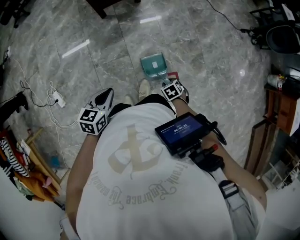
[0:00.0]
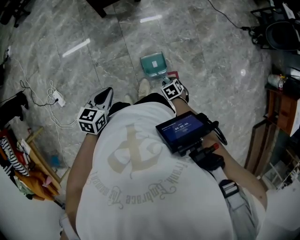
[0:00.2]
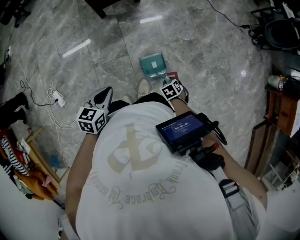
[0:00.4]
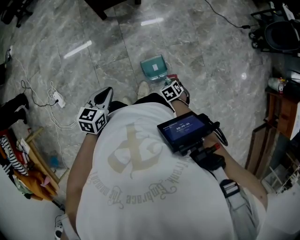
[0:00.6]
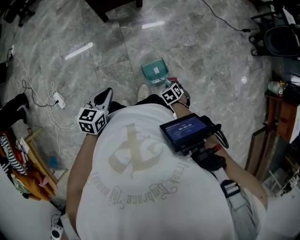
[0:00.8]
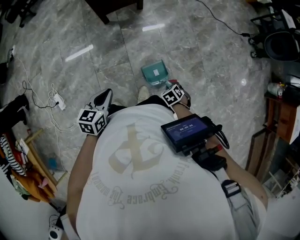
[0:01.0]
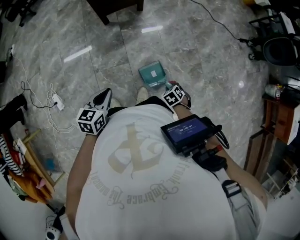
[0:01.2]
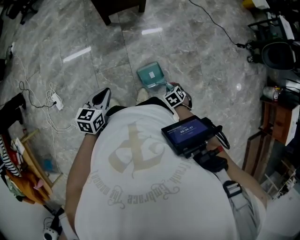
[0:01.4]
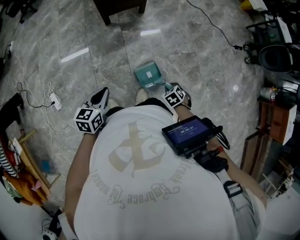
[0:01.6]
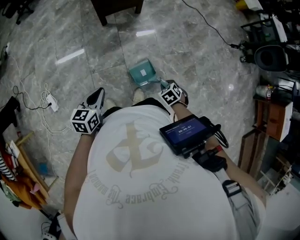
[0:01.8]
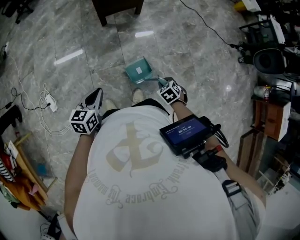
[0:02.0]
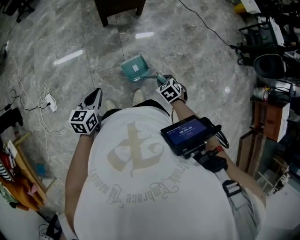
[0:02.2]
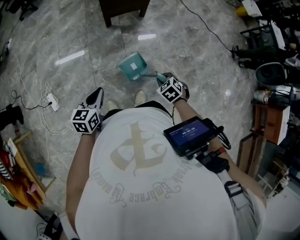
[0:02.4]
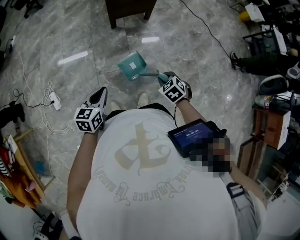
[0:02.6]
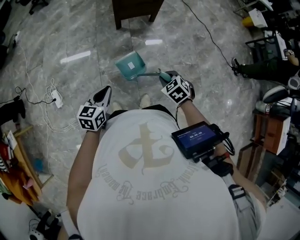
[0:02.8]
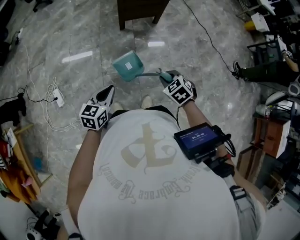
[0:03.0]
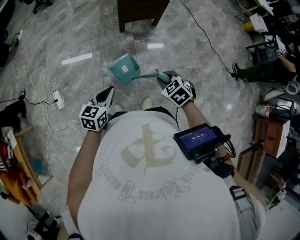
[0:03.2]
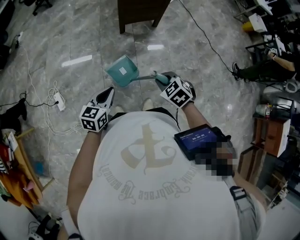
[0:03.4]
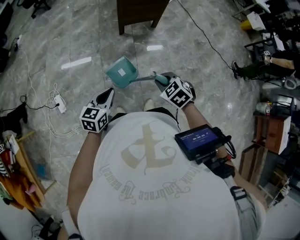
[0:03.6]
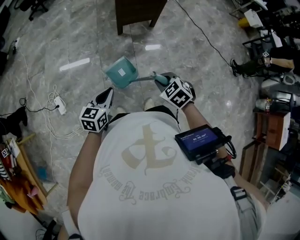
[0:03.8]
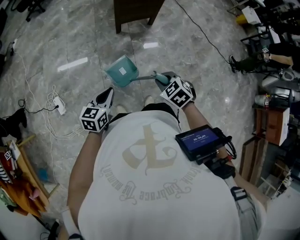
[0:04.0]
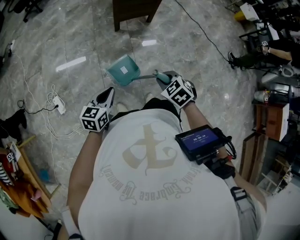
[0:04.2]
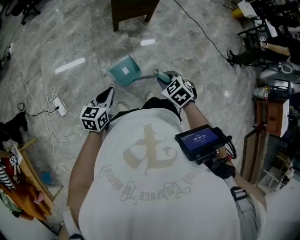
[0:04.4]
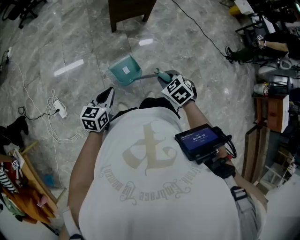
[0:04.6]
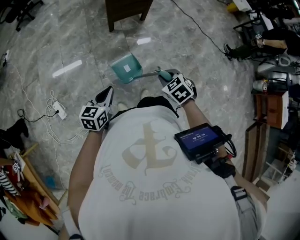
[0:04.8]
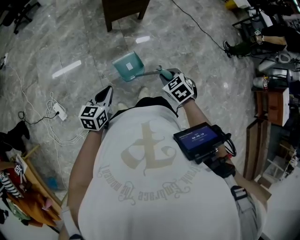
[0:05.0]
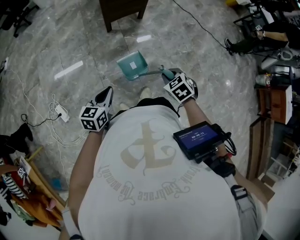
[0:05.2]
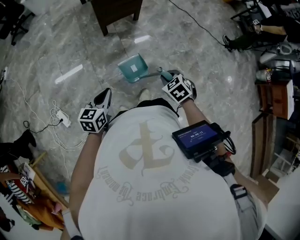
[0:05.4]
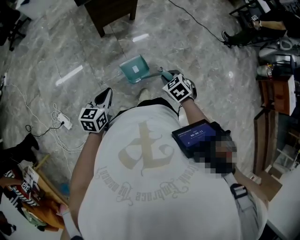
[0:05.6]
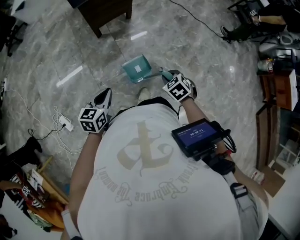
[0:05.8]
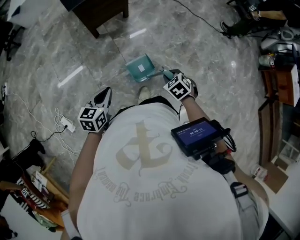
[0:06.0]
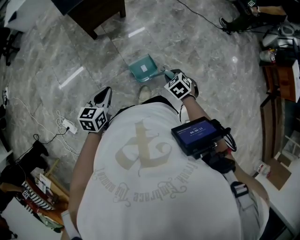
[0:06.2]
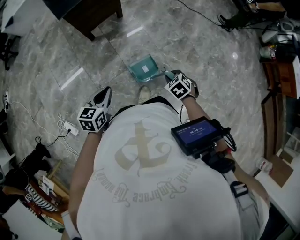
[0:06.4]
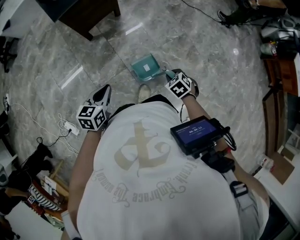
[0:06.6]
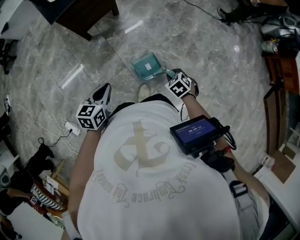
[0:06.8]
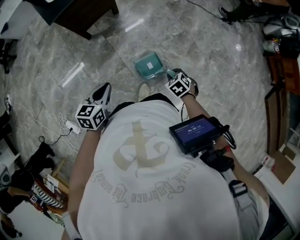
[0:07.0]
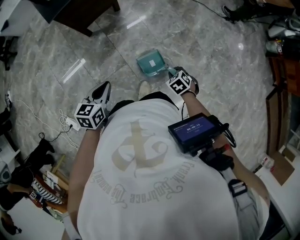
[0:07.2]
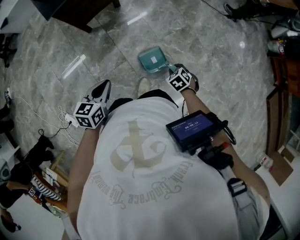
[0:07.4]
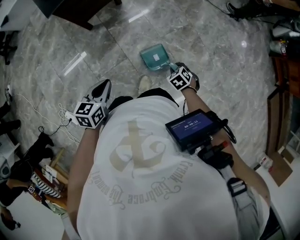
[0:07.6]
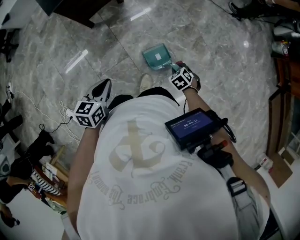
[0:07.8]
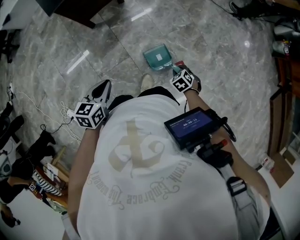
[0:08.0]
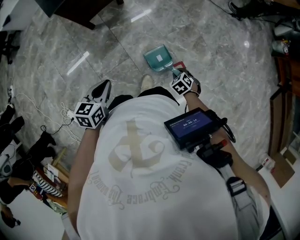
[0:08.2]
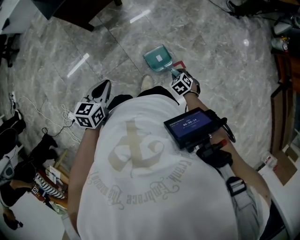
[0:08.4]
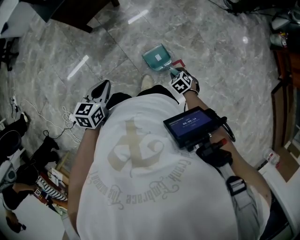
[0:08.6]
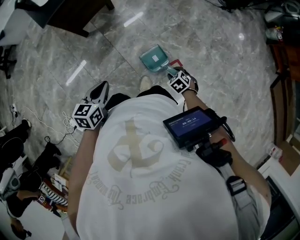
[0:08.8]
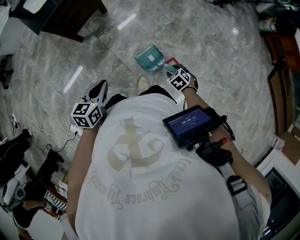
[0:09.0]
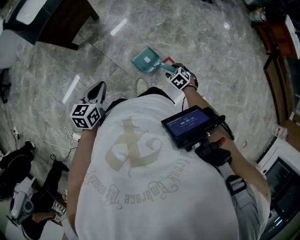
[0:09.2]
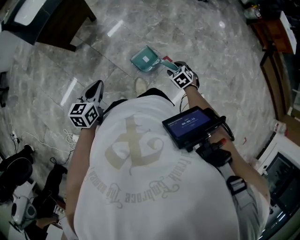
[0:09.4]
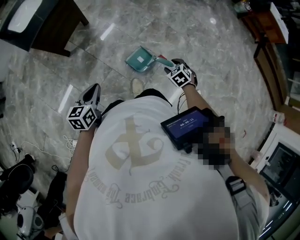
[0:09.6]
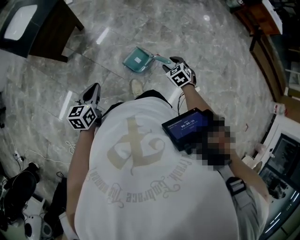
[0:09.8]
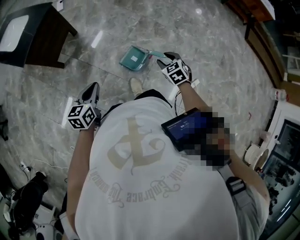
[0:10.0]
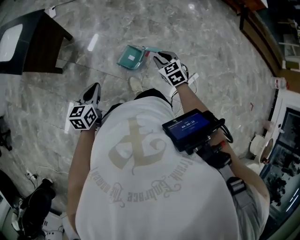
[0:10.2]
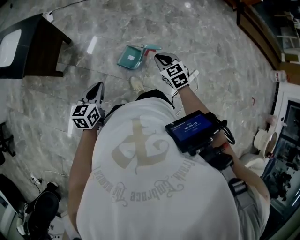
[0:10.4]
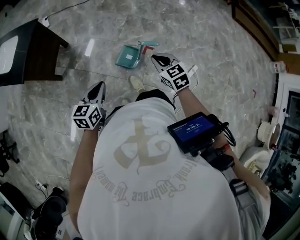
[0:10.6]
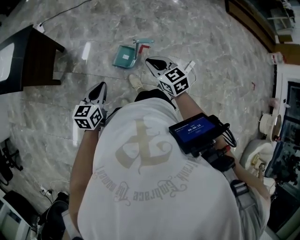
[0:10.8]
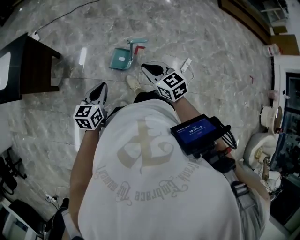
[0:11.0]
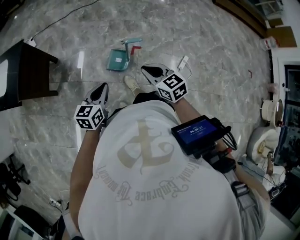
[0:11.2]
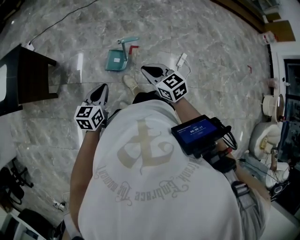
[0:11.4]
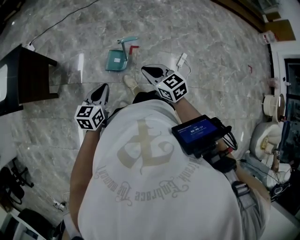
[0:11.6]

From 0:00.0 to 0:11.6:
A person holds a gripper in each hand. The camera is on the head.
From 0:00.0 to 0:01.4: The right gripper closes up.
From 0:01.4 to 0:02.8: The right gripper travels upward by about 15 cm, and turns by approximately 20 degrees. Meanwhile the left gripper shifts by some 5 cm.
From 0:02.8 to 0:04.4: The right gripper heads to the left and upward, covering some 10 cm, while the left gripper is displaced to the left by some 5 cm.
From 0:04.4 to 0:05.8: The right gripper moves to the right and downward, about 15 cm. The left gripper moves forward and to the right, roughly 10 cm.
From 0:05.8 to 0:07.2: The right gripper heads downward and to the right, covering approximately 15 cm, while the left gripper is displaced forward and to the right by some 10 cm.
From 0:07.2 to 0:08.8: The right gripper travels downward by about 5 cm, and opens up.
From 0:08.8 to 0:10.2: The left gripper turns by about 20 degrees. The right gripper moves upward, approximately 20 cm, and rotates roughly 40 degrees.
From 0:10.2 to 0:11.6: The left gripper is displaced to the right by roughly 10 cm, and changes its angle by about 20 degrees; the right gripper is displaced backward and upward by about 20 cm, changes its angle by roughly 30 degrees, and closes its fingers.

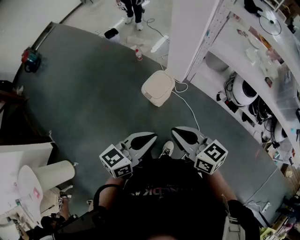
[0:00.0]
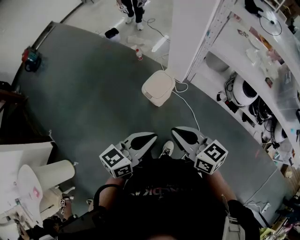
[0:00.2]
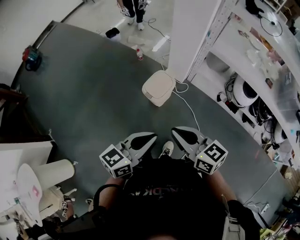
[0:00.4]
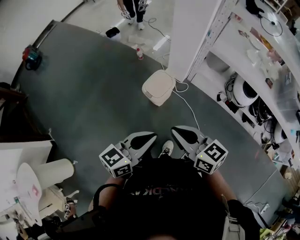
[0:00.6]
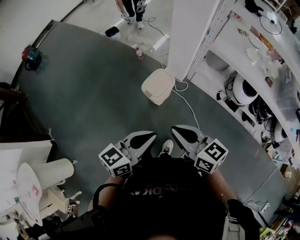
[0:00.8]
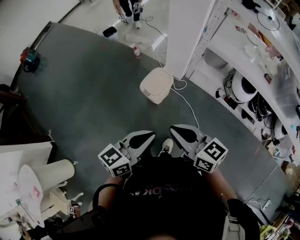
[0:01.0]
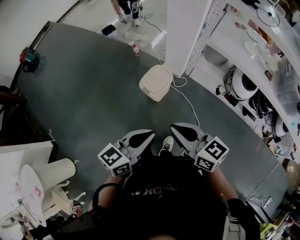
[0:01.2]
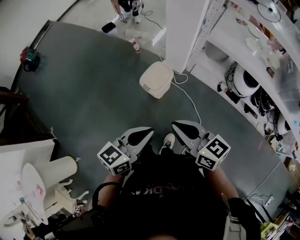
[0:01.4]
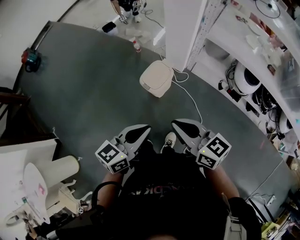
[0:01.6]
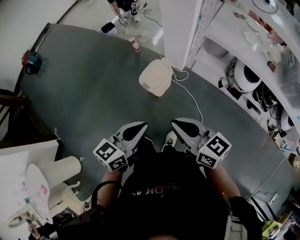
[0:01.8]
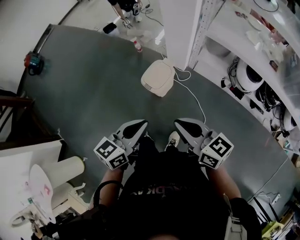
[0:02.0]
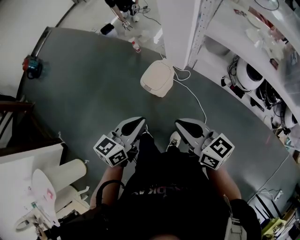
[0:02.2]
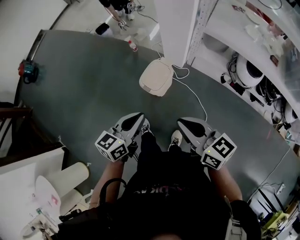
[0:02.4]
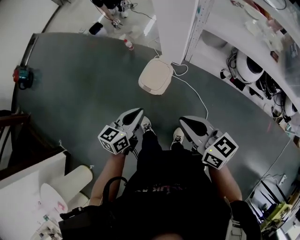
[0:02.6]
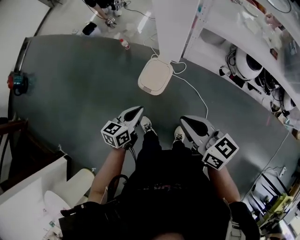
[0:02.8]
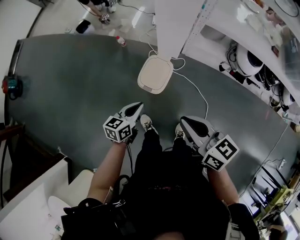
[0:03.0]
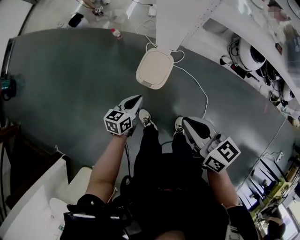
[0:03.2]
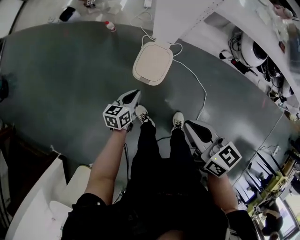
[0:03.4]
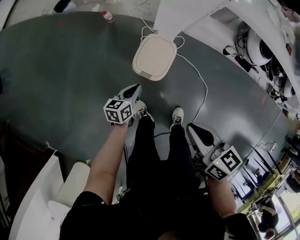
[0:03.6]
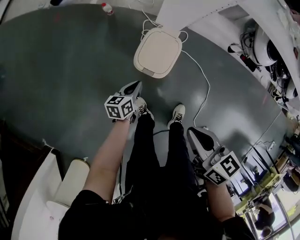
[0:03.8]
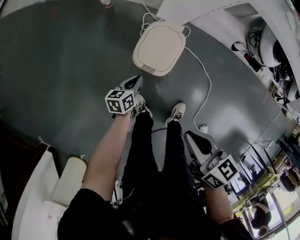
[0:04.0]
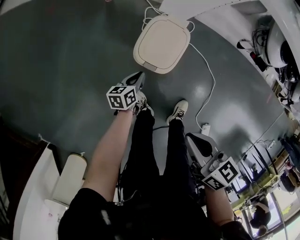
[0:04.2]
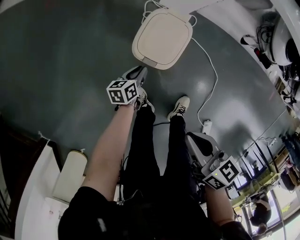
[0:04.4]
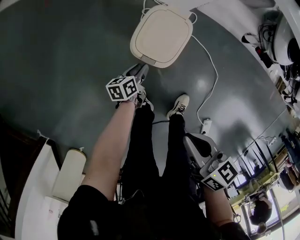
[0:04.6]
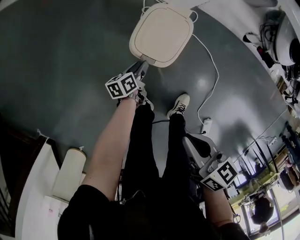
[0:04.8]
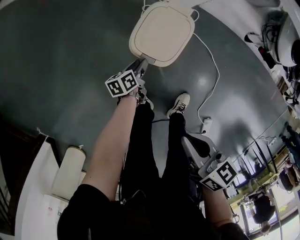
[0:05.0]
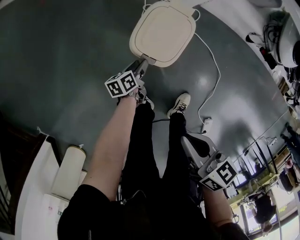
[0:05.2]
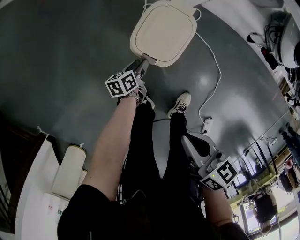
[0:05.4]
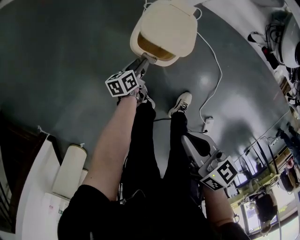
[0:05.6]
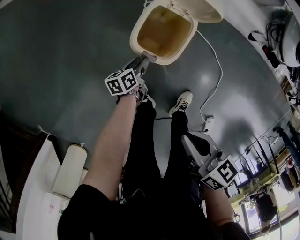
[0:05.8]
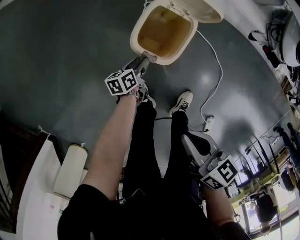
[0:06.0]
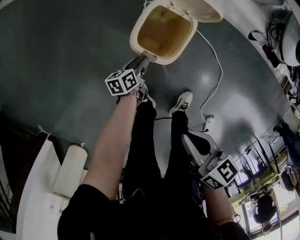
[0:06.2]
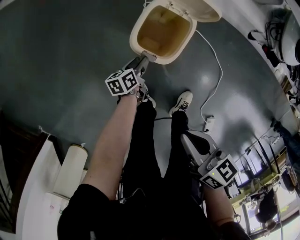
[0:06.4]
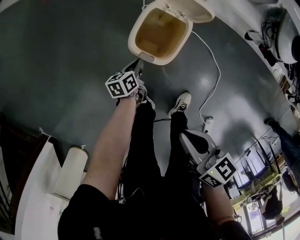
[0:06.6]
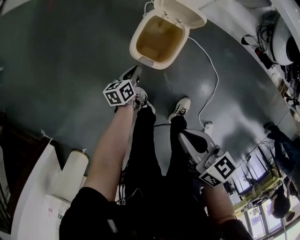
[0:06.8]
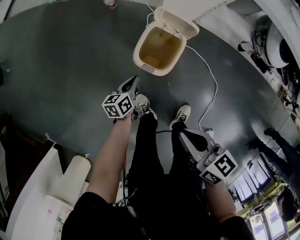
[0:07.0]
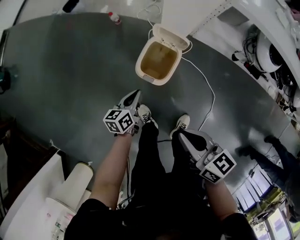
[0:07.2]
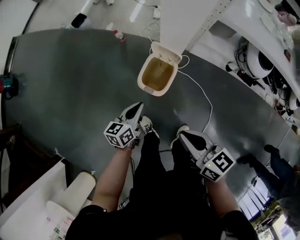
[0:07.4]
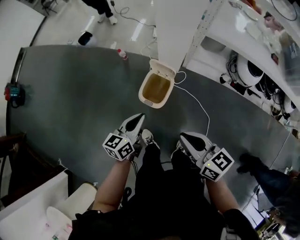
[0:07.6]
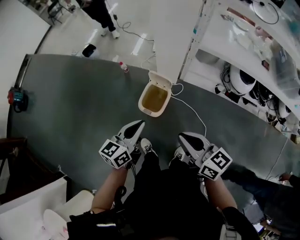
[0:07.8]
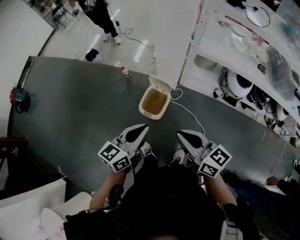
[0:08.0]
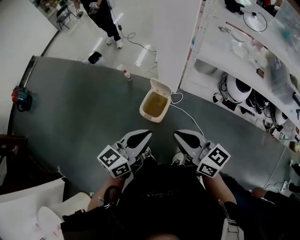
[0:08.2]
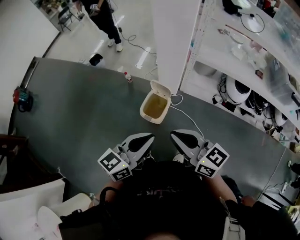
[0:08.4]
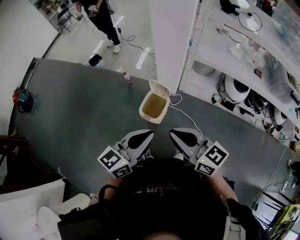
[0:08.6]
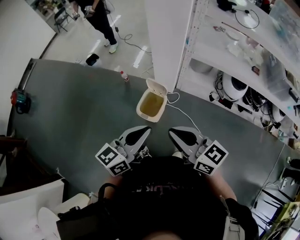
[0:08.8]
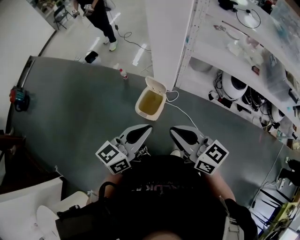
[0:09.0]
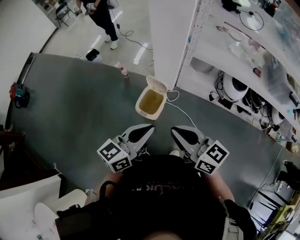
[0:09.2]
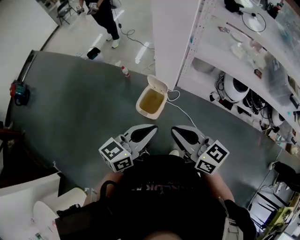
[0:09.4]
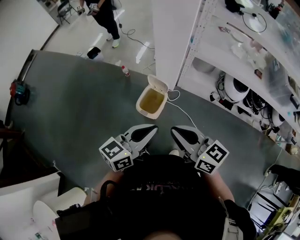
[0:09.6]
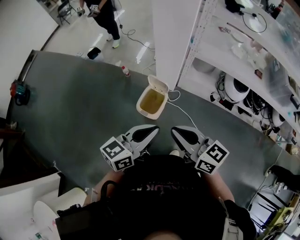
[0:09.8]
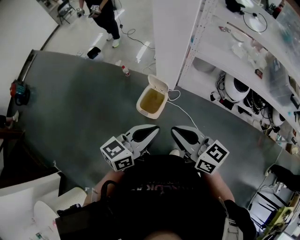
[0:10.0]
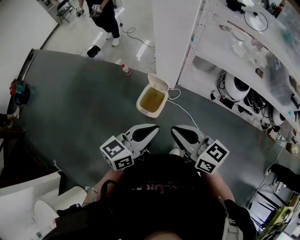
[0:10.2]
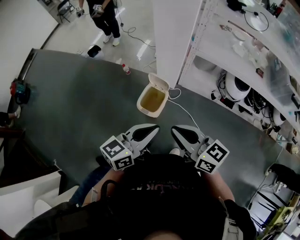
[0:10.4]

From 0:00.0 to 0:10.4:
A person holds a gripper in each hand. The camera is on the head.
From 0:00.0 to 0:01.4: The grippers make only small movements.
From 0:01.4 to 0:03.0: The right gripper shifts roughly 15 cm forward, and rotates some 20 degrees; the left gripper moves forward, downward and to the left, about 35 cm.
From 0:03.0 to 0:04.4: The grippers both shift downward by about 35 cm. The left gripper changes its angle by roughly 20 degrees; the right gripper swivels approximately 20 degrees.
From 0:04.4 to 0:06.0: The left gripper travels downward by approximately 5 cm, and opens.
From 0:06.0 to 0:07.4: The left gripper travels upward by some 35 cm, rotates some 30 degrees, and closes its fingers. The right gripper travels upward by about 20 cm, and turns by about 20 degrees.
From 0:07.4 to 0:09.0: The right gripper goes approximately 20 cm upward, and changes its angle by some 20 degrees; the left gripper heads upward, covering approximately 35 cm, and rotates roughly 30 degrees.
From 0:09.0 to 0:10.4: The grippers stay close to where they were, moving slightly.

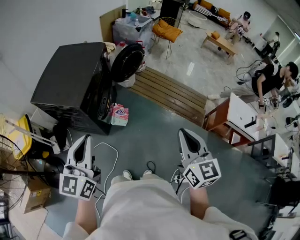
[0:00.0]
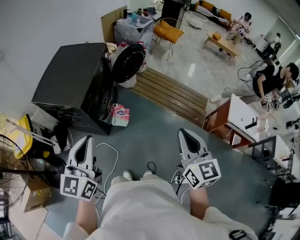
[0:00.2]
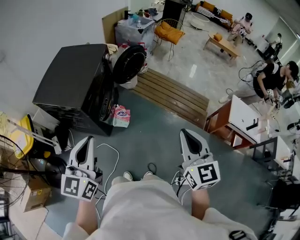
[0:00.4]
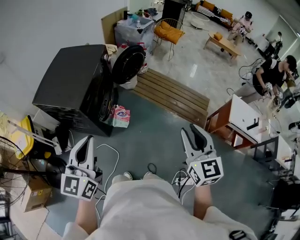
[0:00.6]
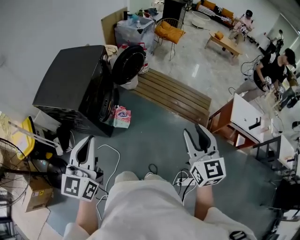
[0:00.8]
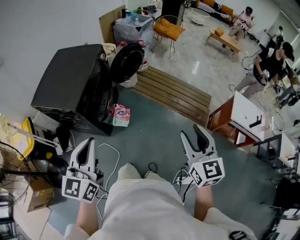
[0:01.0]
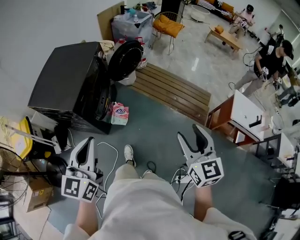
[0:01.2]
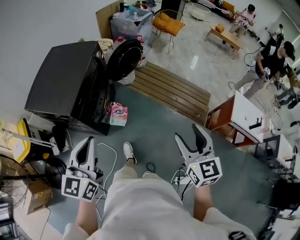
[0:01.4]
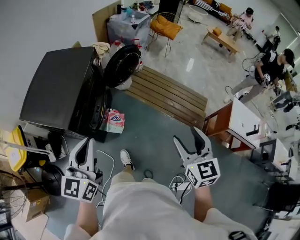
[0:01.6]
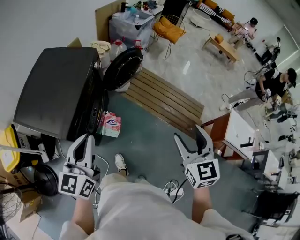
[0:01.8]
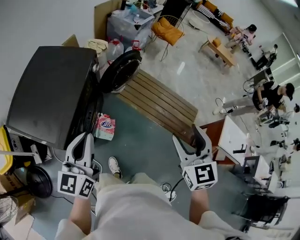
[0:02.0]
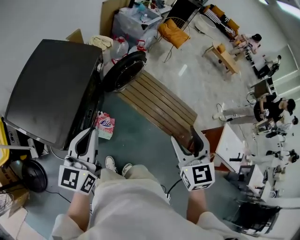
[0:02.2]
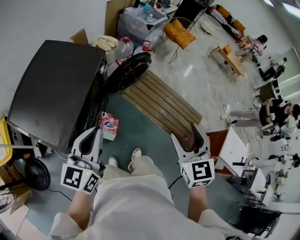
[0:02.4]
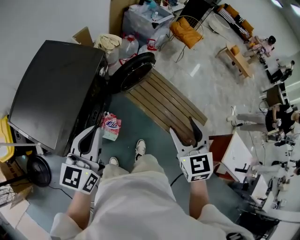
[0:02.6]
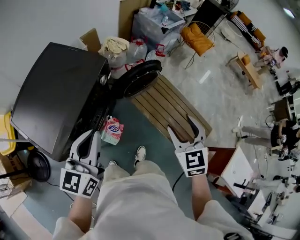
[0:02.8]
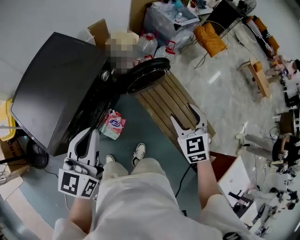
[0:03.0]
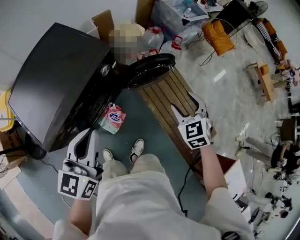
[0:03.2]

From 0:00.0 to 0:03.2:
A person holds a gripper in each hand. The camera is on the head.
From 0:00.0 to 0:01.6: Both grippers travel together forward, roughly 15 cm. The right gripper opens.
From 0:01.6 to 0:03.2: The right gripper heads forward, covering approximately 50 cm, and changes its angle by approximately 50 degrees; the left gripper travels forward by about 35 cm, and swivels about 20 degrees.
